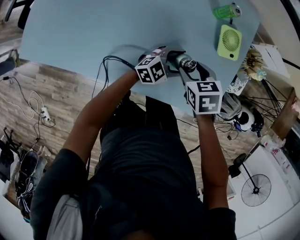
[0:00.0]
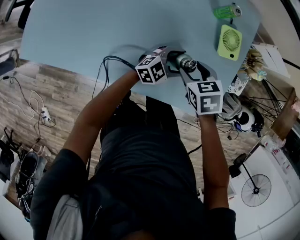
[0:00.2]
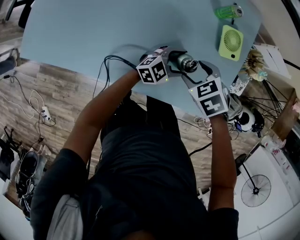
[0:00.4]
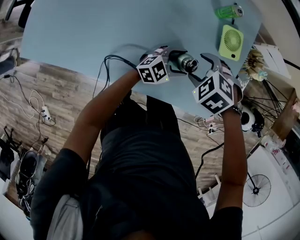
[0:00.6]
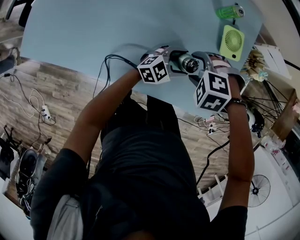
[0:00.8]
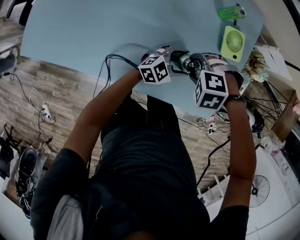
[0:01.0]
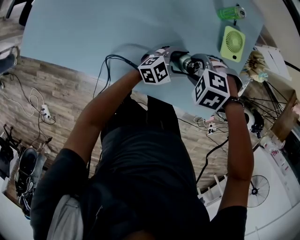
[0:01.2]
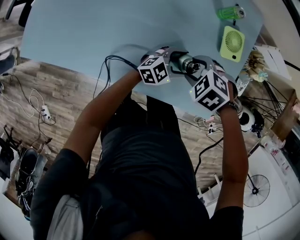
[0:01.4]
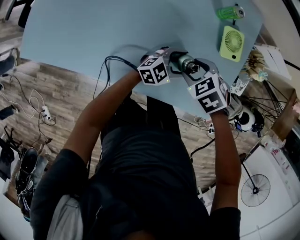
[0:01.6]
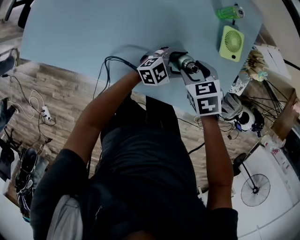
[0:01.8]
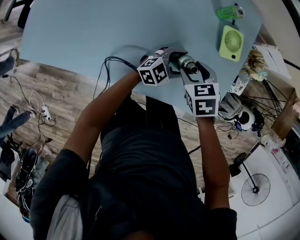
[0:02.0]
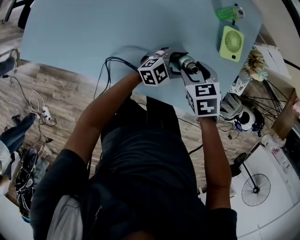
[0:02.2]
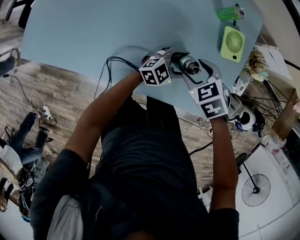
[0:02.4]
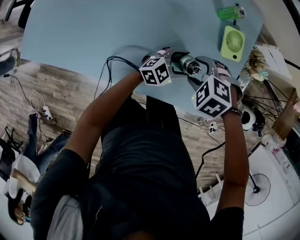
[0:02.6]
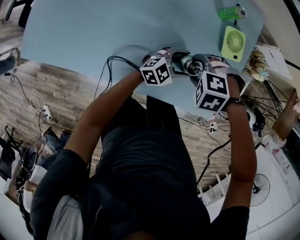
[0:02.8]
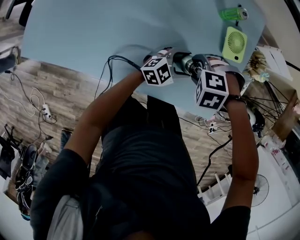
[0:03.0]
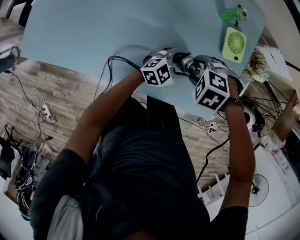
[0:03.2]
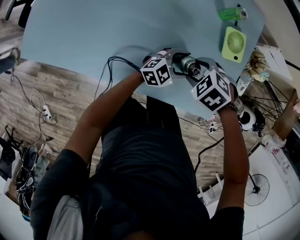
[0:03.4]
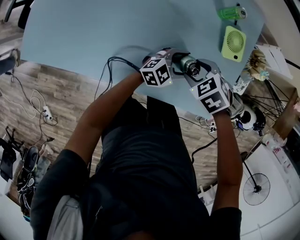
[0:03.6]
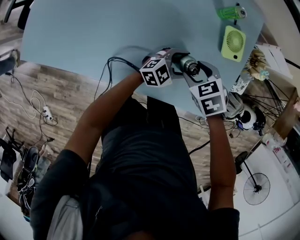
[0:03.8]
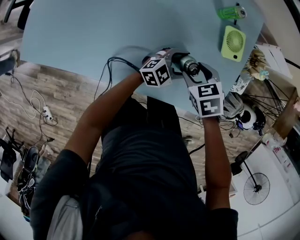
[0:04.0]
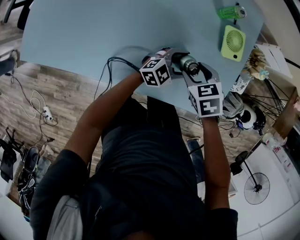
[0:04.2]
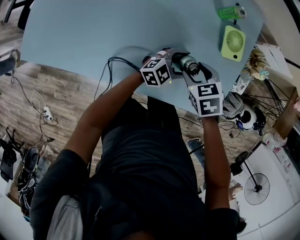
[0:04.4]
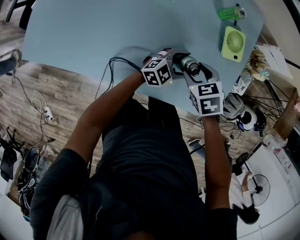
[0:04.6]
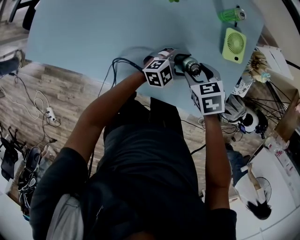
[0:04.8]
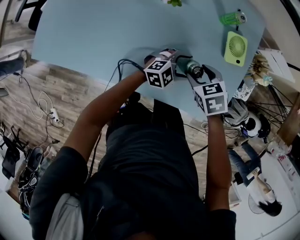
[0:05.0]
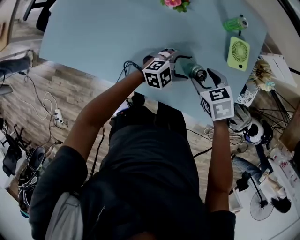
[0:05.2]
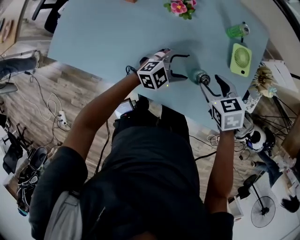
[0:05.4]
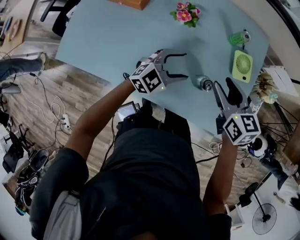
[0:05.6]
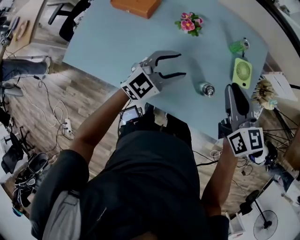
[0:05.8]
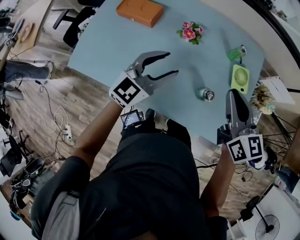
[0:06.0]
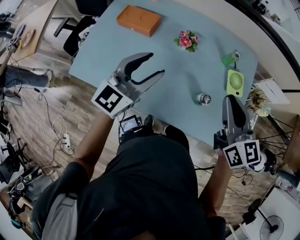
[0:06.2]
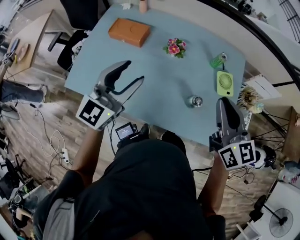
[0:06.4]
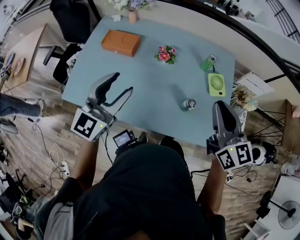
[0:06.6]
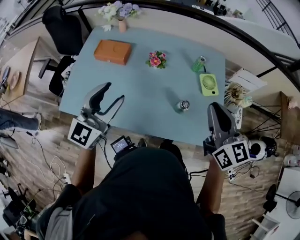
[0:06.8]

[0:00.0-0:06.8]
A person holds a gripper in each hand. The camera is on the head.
0:00.0 to 0:01.4: The right gripper rotates around the line of its fingers by about 50 degrees, counterclockwise from behind.
0:01.4 to 0:02.8: The right gripper swivels some 20 degrees.
0:02.8 to 0:04.0: The right gripper rotates around the line of its fingers by approximately 60 degrees, clockwise from behind.
0:04.0 to 0:05.4: The left gripper goes about 10 cm to the left and upward; the right gripper heads upward, covering roughly 5 cm.
0:05.4 to 0:06.8: The right gripper moves upward, approximately 30 cm, tips its fingers upward by some 50 degrees, and closes up, while the left gripper is displaced upward and to the left by approximately 40 cm, and changes its angle by about 40 degrees.

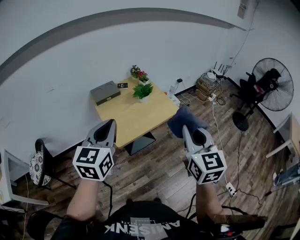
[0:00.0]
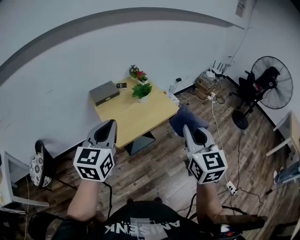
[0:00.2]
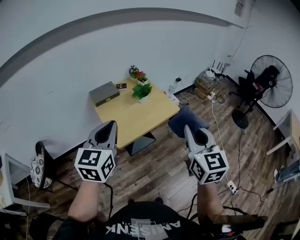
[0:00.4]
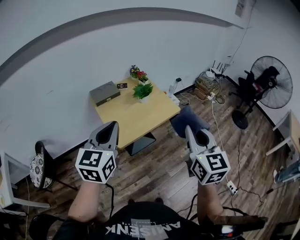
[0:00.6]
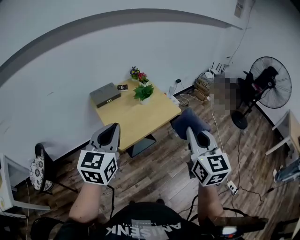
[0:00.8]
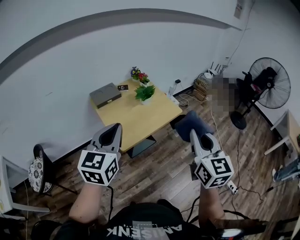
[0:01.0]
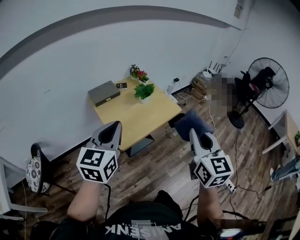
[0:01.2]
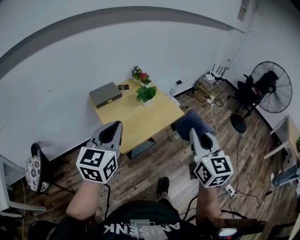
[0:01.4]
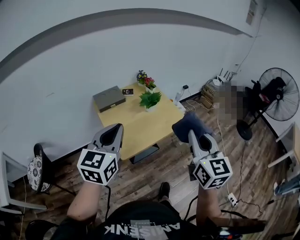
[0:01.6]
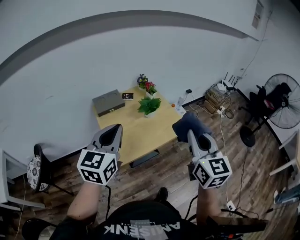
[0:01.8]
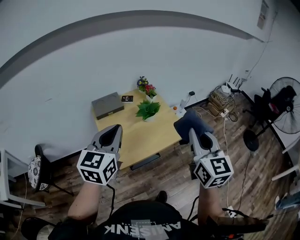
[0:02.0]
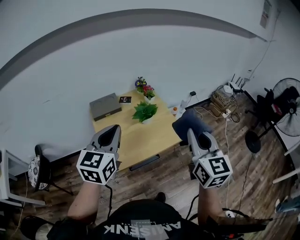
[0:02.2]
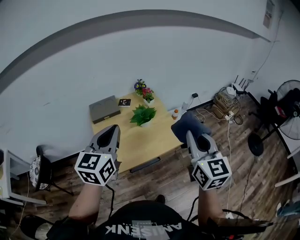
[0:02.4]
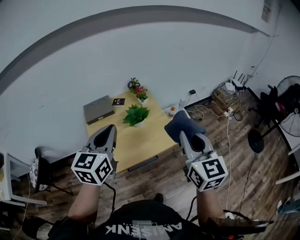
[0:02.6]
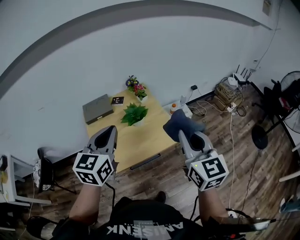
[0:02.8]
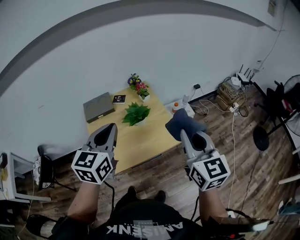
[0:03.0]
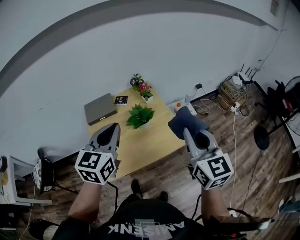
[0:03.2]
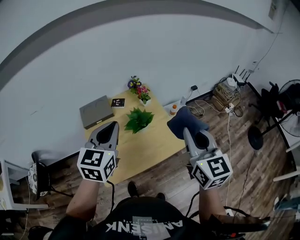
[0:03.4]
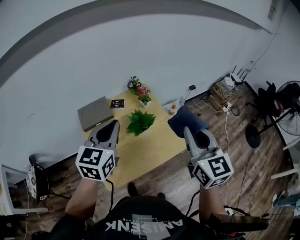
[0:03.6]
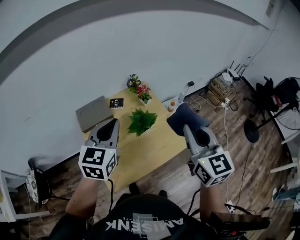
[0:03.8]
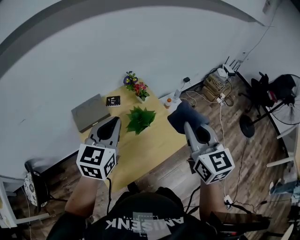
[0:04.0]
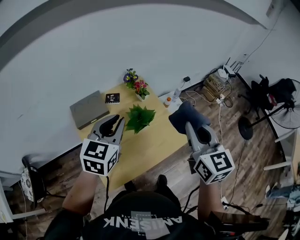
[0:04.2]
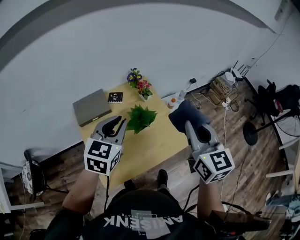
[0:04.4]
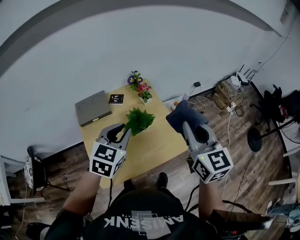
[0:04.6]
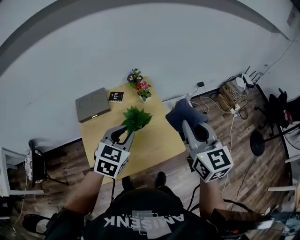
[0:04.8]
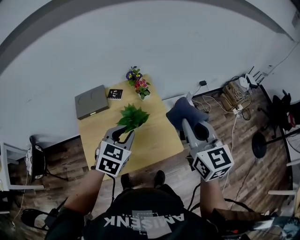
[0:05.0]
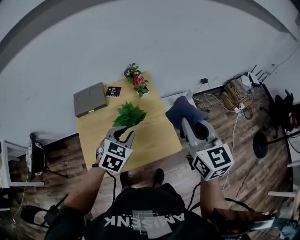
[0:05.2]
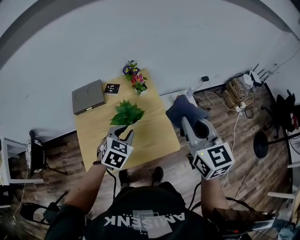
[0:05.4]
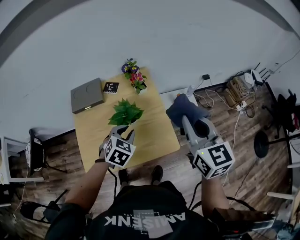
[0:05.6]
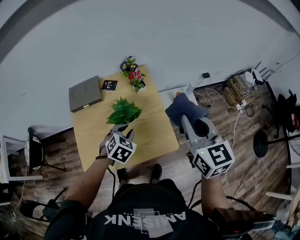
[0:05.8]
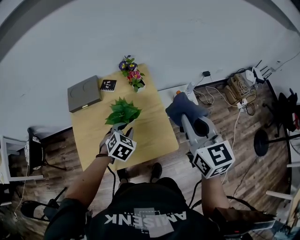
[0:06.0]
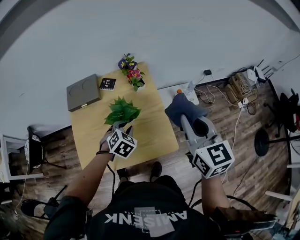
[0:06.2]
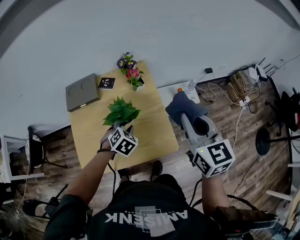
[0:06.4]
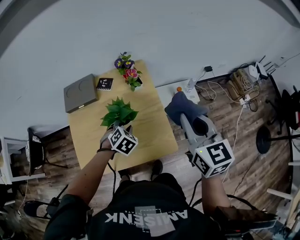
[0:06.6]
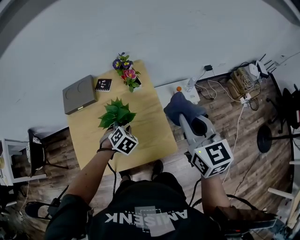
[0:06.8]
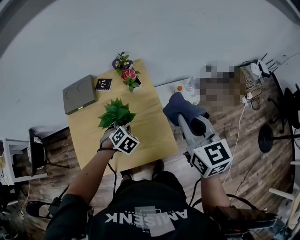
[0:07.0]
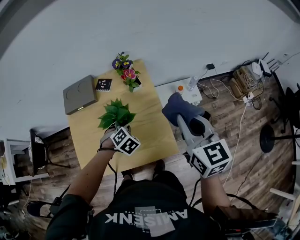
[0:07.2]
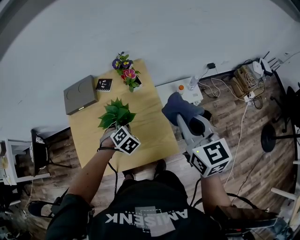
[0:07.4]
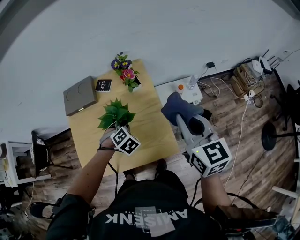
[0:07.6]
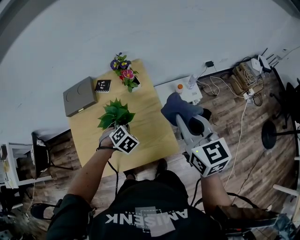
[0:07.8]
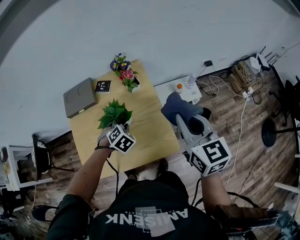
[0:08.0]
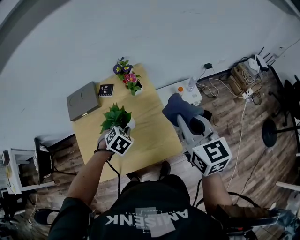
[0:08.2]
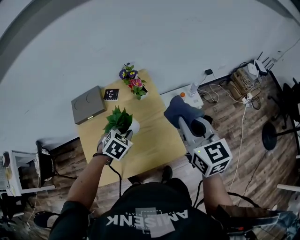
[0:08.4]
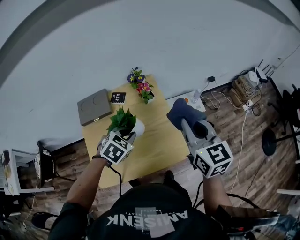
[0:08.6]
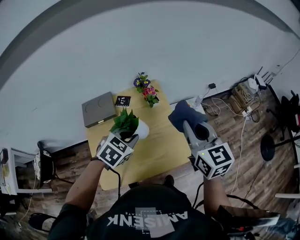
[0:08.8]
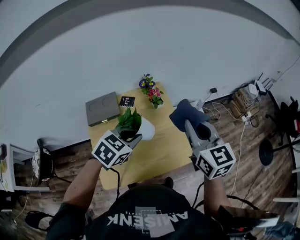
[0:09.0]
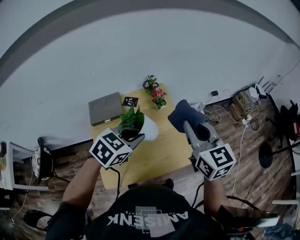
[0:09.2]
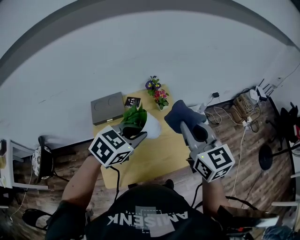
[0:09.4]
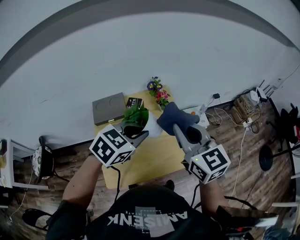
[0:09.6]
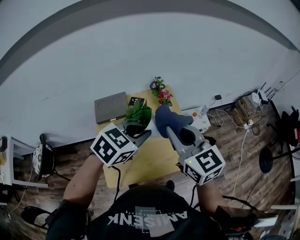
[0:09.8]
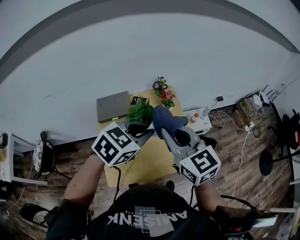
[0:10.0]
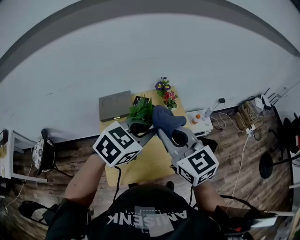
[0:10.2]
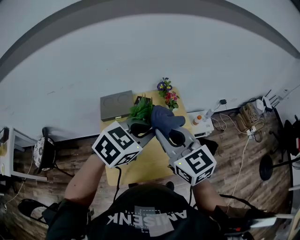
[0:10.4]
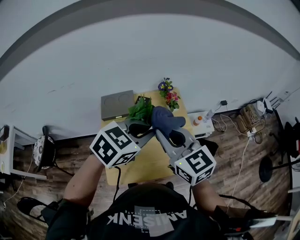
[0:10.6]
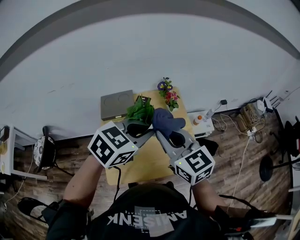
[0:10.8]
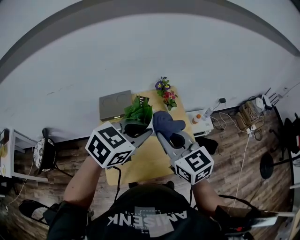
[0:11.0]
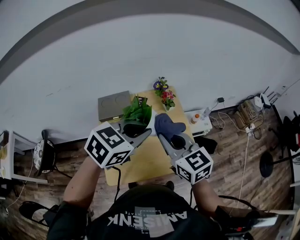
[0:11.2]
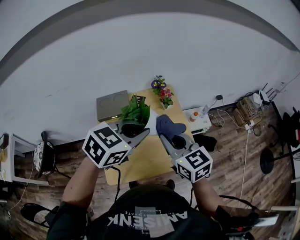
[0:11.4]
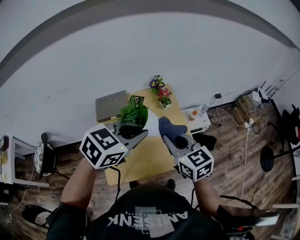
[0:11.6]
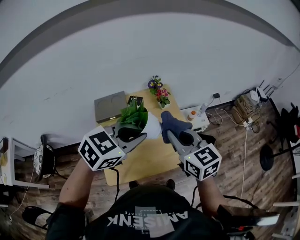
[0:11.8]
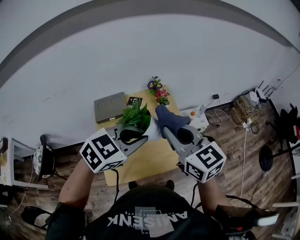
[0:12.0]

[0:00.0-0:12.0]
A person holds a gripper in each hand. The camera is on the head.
0:00.0 to 0:01.6: Both grippers travel together forward, roughly 10 cm.
0:01.6 to 0:03.0: The two grippers go roughly 25 cm forward and to the right.
0:03.0 to 0:04.4: The left gripper heads forward and downward, covering approximately 15 cm; the right gripper goes roughly 15 cm forward and to the left.
0:04.4 to 0:06.0: The right gripper goes about 15 cm to the right, forward and downward, while the left gripper heads downward and to the right, covering some 25 cm, and tilts its fingers about 30 degrees downward.
0:06.0 to 0:07.6: The right gripper shifts by some 5 cm. The left gripper goes about 5 cm downward, and swivels some 20 degrees.
0:07.6 to 0:09.0: The right gripper changes place by about 15 cm. The left gripper is displaced upward by roughly 20 cm, and swivels about 40 degrees.
0:09.0 to 0:10.4: The left gripper shifts some 10 cm upward. Meanwhile the right gripper goes some 20 cm to the left and backward, and turns by some 20 degrees.
0:10.4 to 0:12.0: The right gripper goes approximately 5 cm to the right, and goes downward and returns, approximately 10 cm each way; the left gripper ends up about 5 cm from where it was.

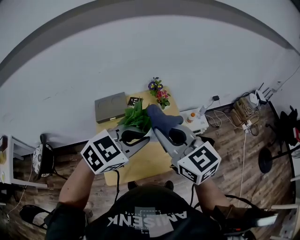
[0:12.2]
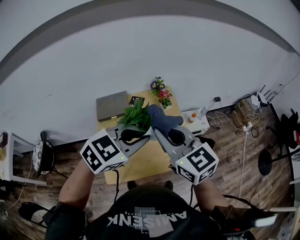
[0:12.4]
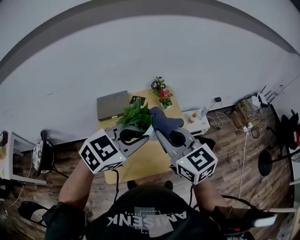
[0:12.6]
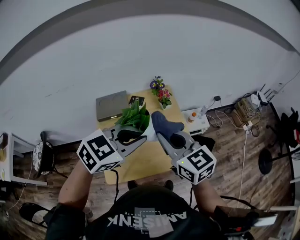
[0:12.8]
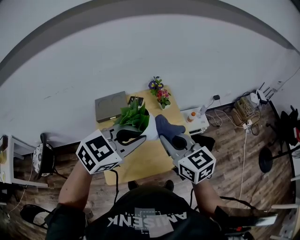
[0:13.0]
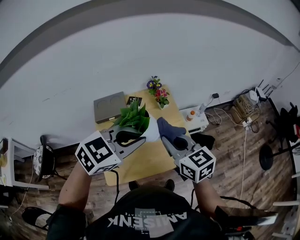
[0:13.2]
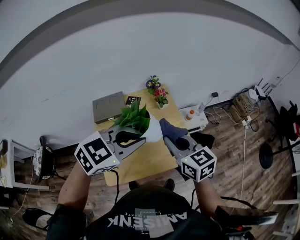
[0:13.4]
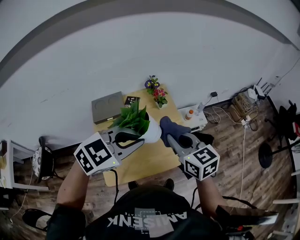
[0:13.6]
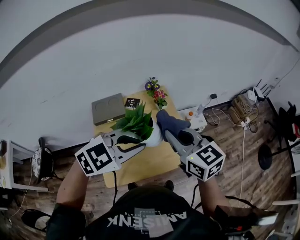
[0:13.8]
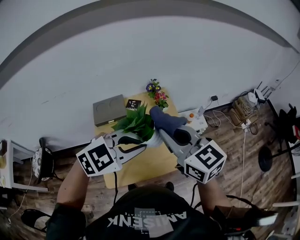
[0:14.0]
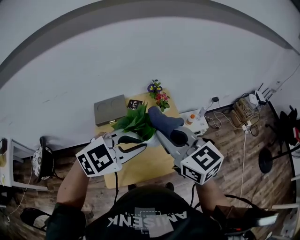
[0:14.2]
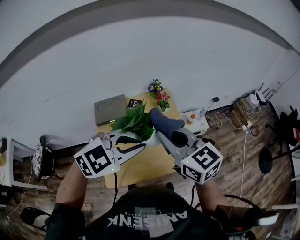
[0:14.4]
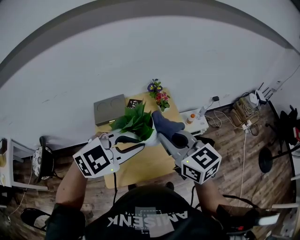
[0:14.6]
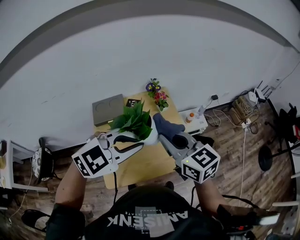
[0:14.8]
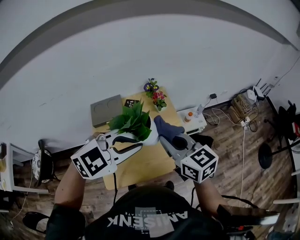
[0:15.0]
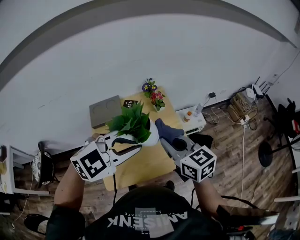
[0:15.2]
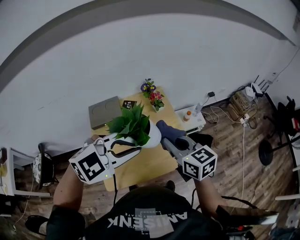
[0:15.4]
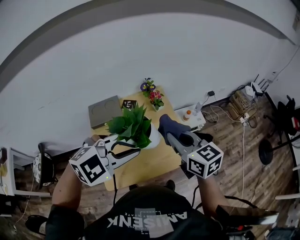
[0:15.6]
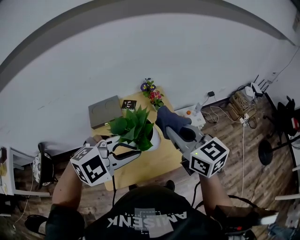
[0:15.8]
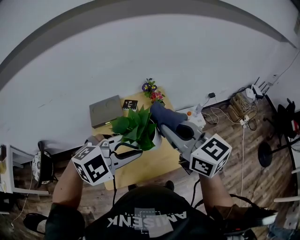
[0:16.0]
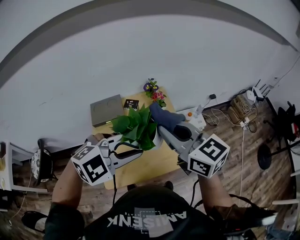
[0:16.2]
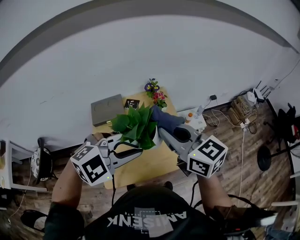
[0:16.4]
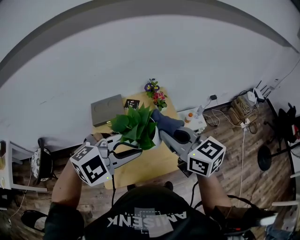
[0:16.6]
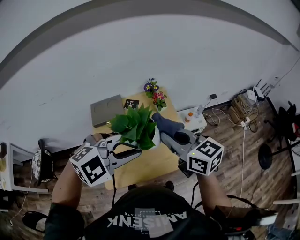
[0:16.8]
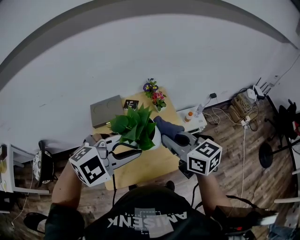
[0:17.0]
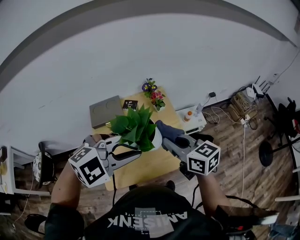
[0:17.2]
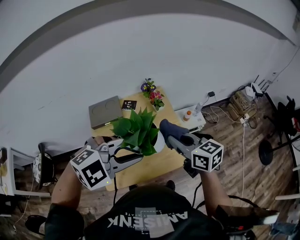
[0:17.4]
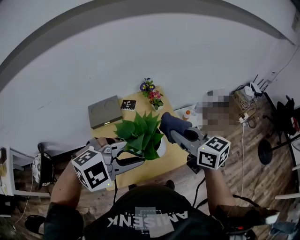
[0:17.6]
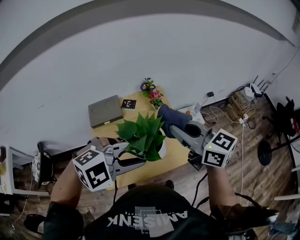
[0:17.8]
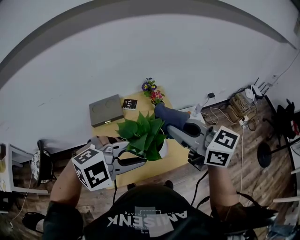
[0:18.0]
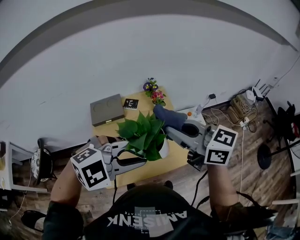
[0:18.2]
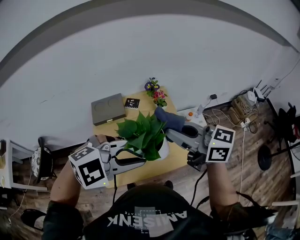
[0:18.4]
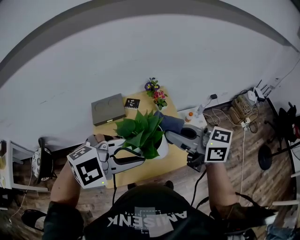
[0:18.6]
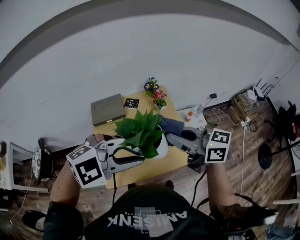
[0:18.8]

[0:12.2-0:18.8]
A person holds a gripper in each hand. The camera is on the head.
0:13.8 to 0:15.4: The right gripper travels downward by some 5 cm.
0:15.4 to 0:17.2: The right gripper goes upward and returns, about 10 cm each way.
0:17.2 to 0:18.8: The right gripper shifts approximately 5 cm upward, and swivels roughly 20 degrees.
